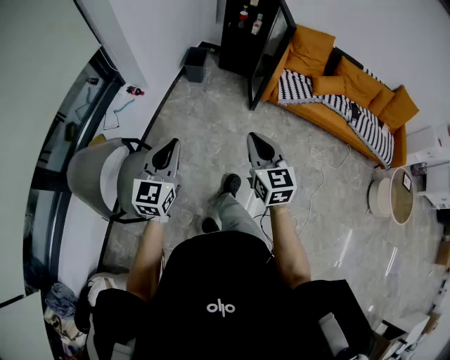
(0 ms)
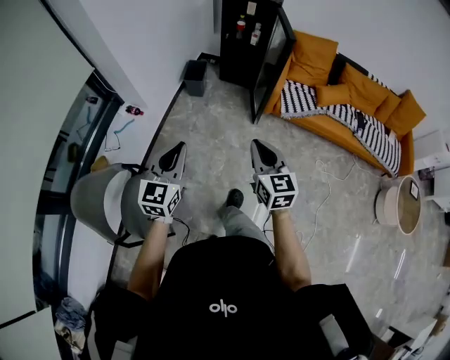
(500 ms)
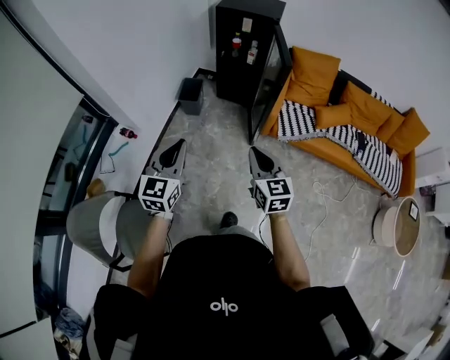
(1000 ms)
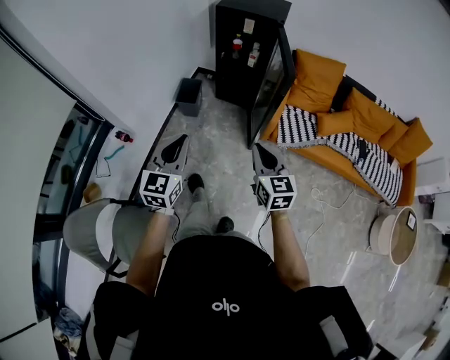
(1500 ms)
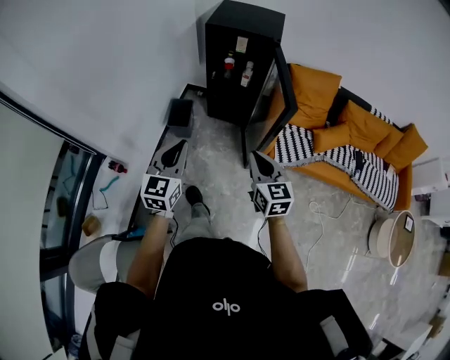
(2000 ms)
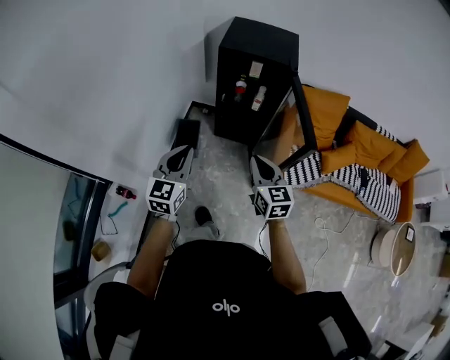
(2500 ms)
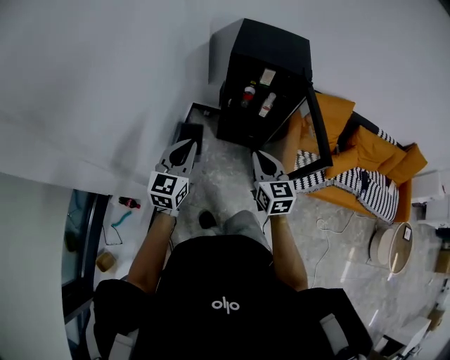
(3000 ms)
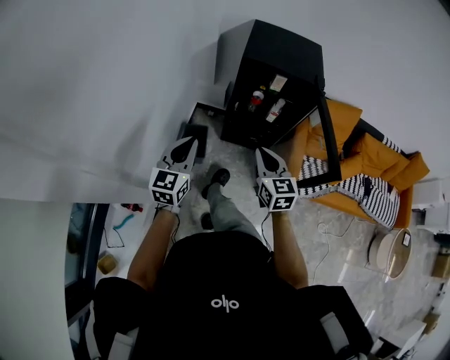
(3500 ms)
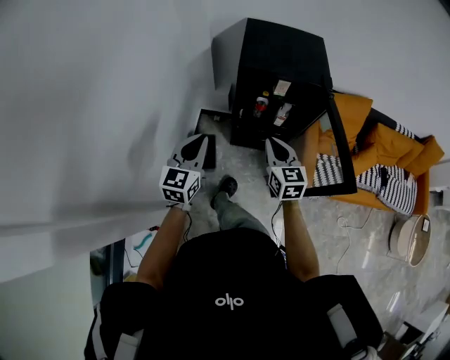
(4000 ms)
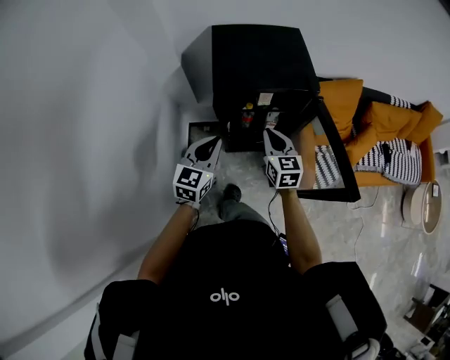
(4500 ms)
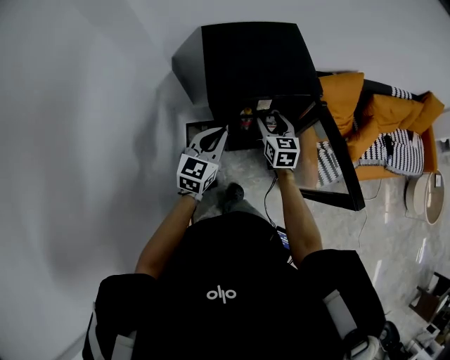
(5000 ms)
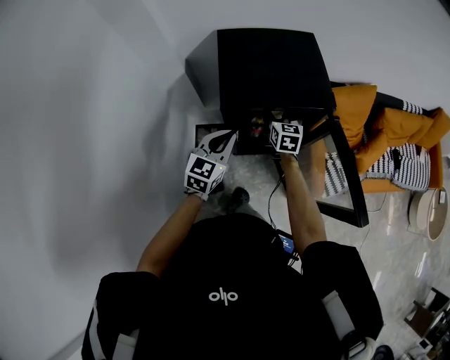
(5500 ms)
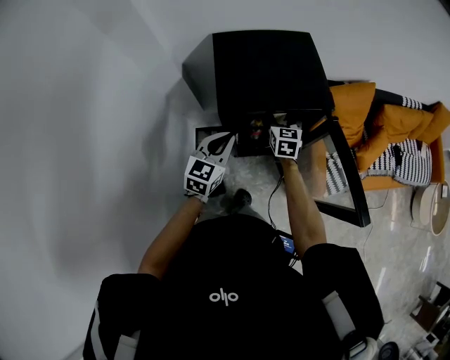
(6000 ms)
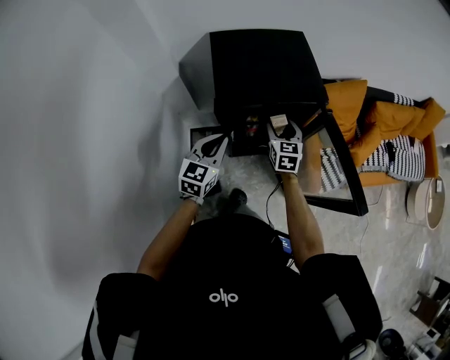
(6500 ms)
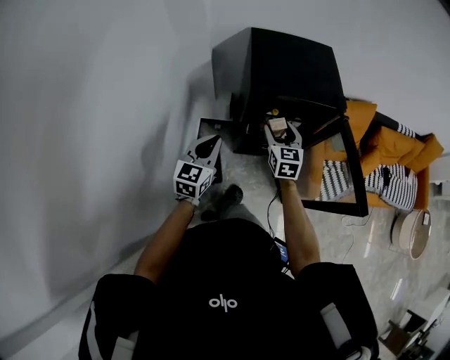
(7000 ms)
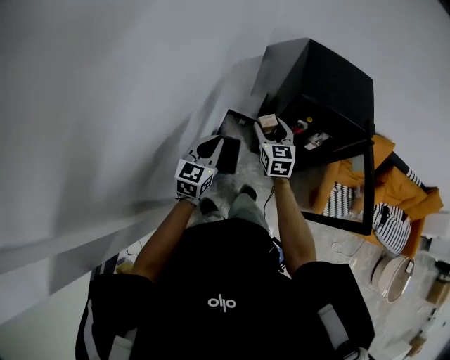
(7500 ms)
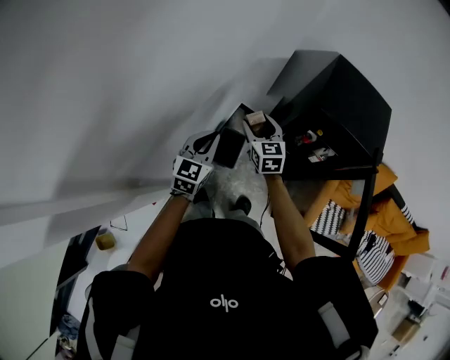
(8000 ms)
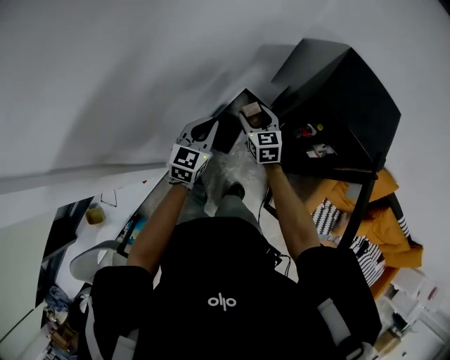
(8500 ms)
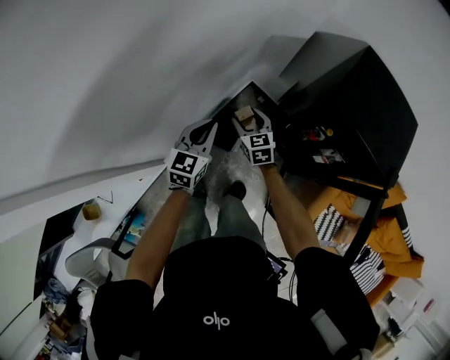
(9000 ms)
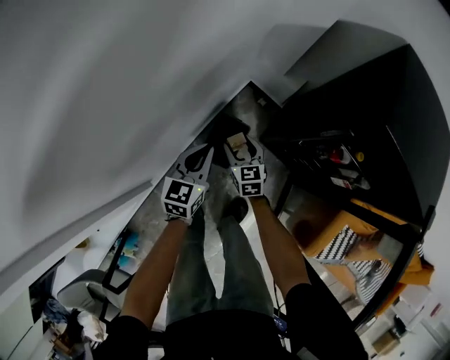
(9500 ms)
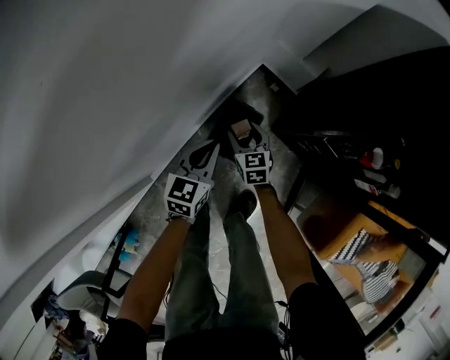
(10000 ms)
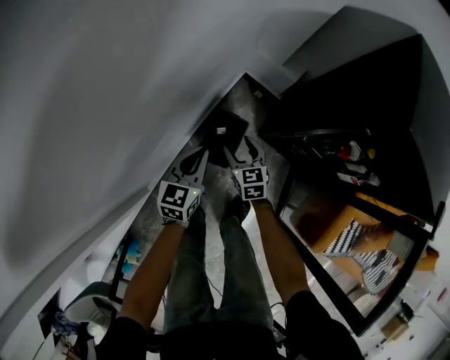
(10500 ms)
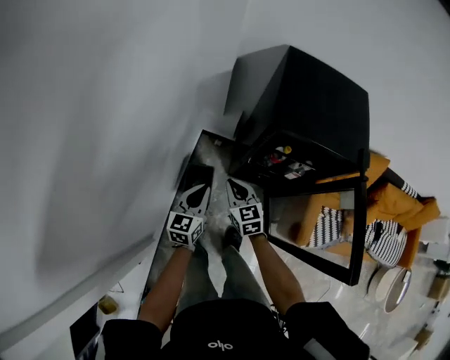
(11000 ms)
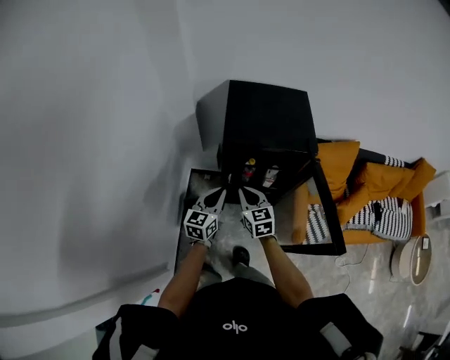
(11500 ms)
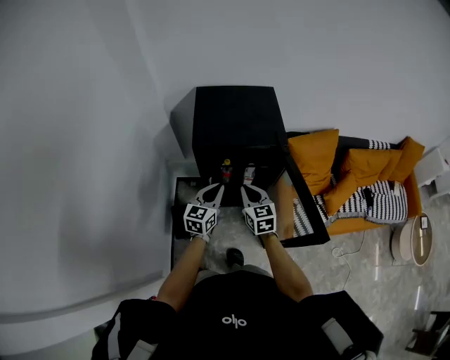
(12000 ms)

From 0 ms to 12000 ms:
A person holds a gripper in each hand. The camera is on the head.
From 0 ms to 2000 ms: The pair of grippers is taken forward, roughly 50 cm.
From 2000 ms to 4000 ms: Both grippers are carried forward and to the left, roughly 40 cm.
From 4000 ms to 6000 ms: The two grippers go approximately 30 cm forward. The left gripper turns by roughly 20 degrees. Meanwhile the right gripper changes its angle by about 20 degrees, and opens its fingers.
From 6000 ms to 8000 ms: The right gripper changes place by some 40 cm, and rotates approximately 50 degrees; the left gripper changes place by roughly 35 cm, and rotates roughly 40 degrees.
From 8000 ms to 10000 ms: Both grippers travel together downward, roughly 40 cm.
From 10000 ms to 12000 ms: Both grippers travel together upward, some 40 cm. The left gripper changes its angle by roughly 40 degrees; the right gripper changes its angle by some 40 degrees, and closes up.

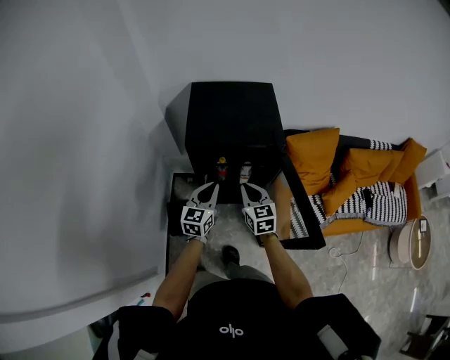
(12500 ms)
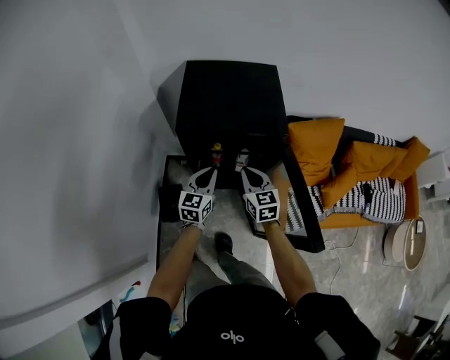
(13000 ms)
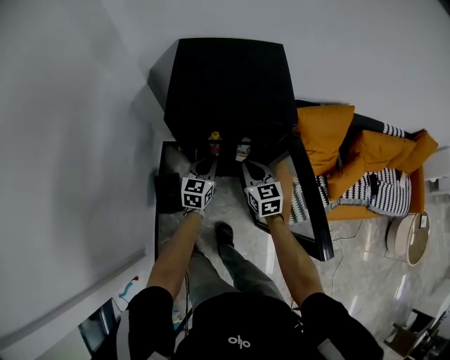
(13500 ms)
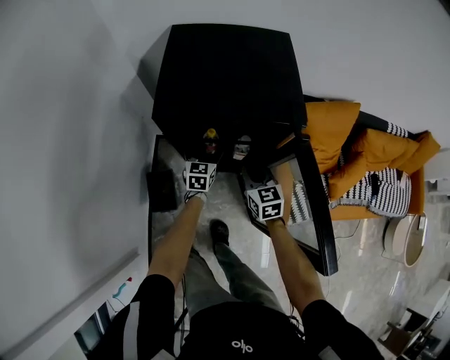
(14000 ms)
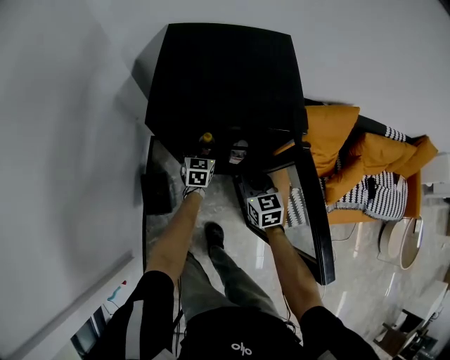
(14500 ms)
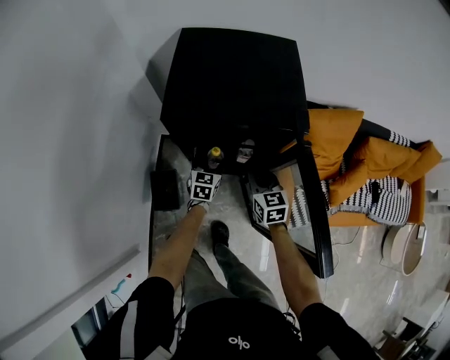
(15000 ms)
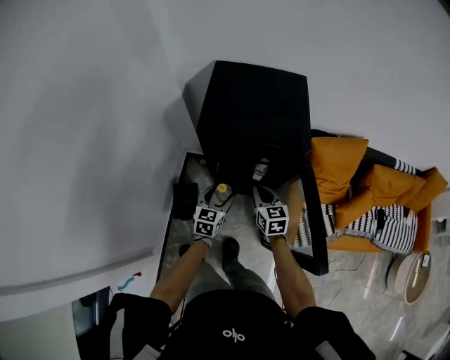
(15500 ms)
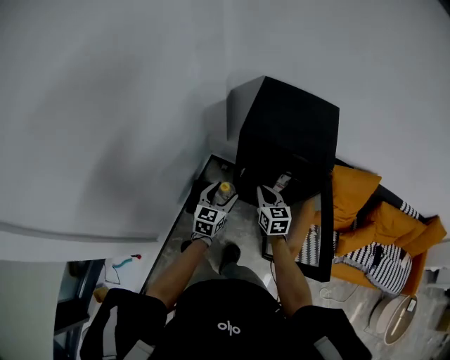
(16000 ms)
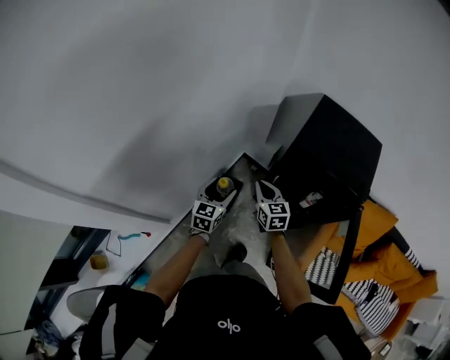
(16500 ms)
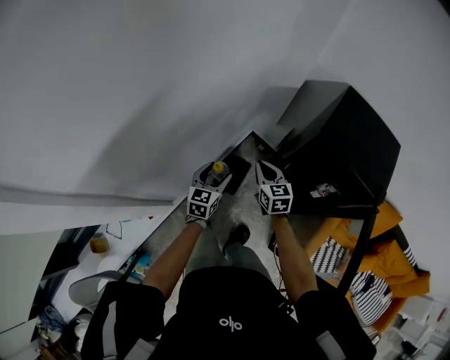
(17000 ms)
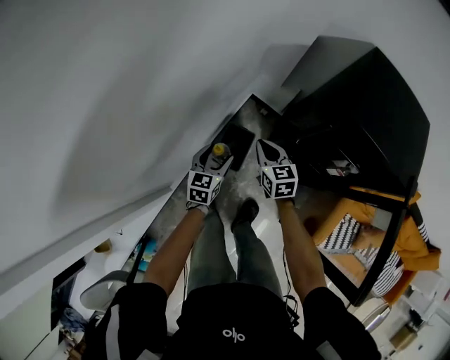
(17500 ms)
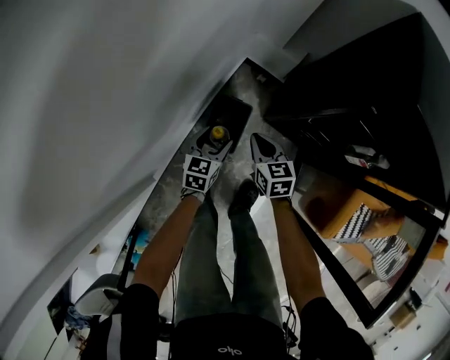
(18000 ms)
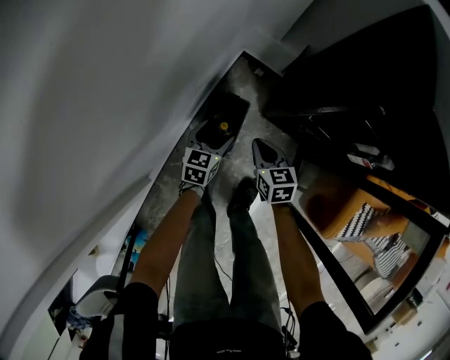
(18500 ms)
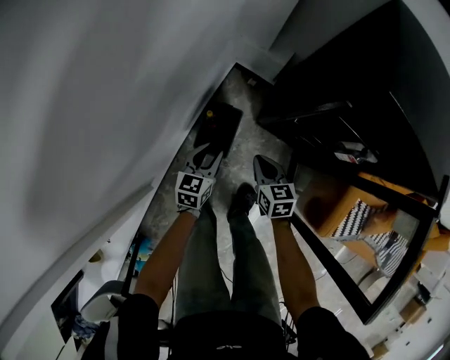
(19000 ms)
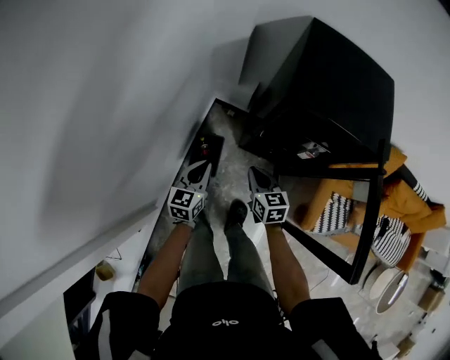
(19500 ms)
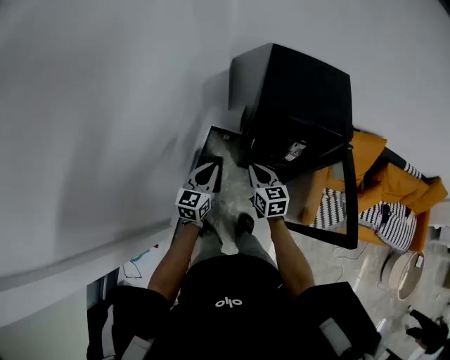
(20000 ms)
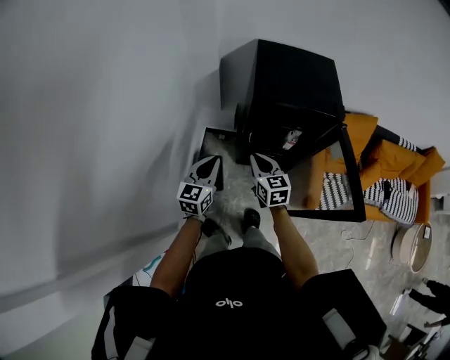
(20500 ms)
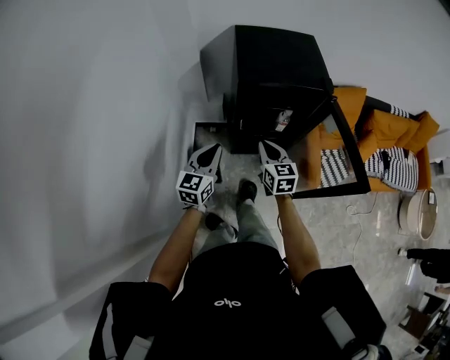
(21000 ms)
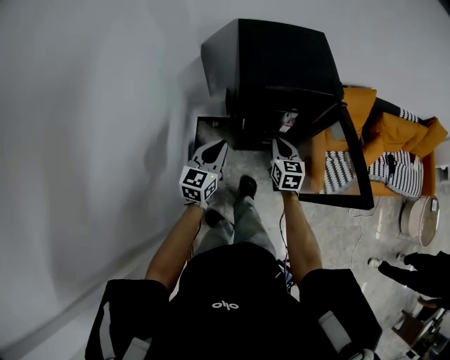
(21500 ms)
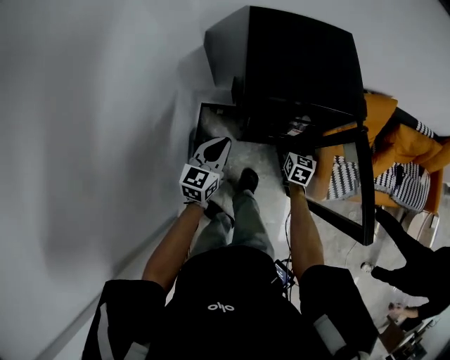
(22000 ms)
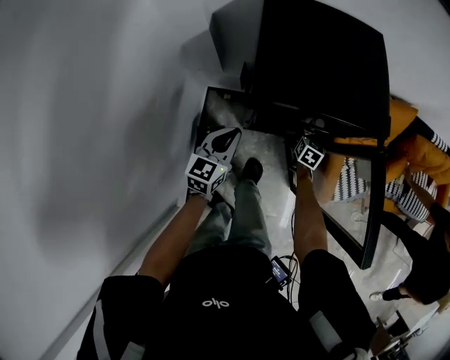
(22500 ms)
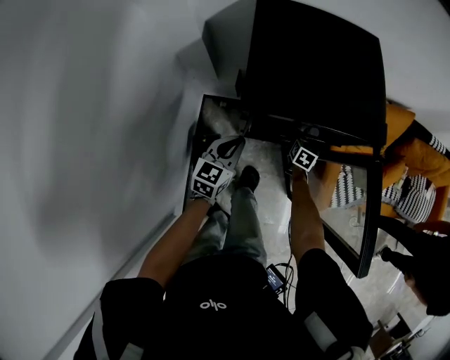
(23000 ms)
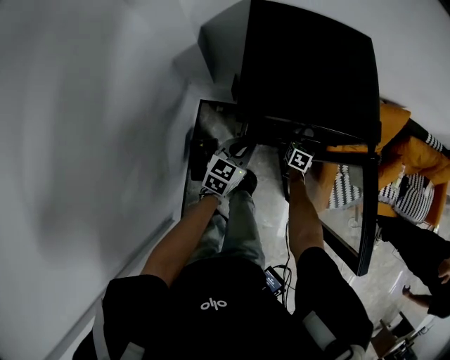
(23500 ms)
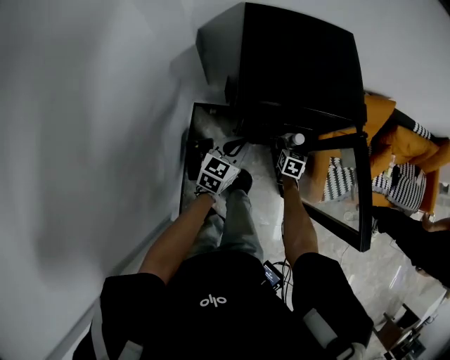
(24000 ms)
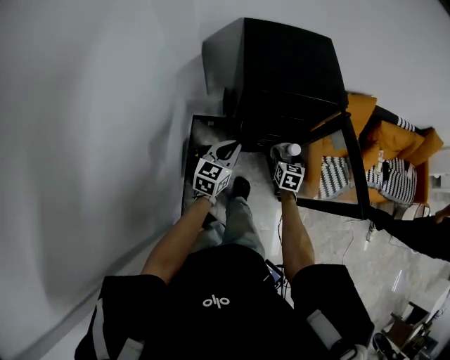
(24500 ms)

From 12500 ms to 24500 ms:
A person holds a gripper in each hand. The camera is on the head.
From 12500 ms to 14500 ms: The left gripper shifts roughly 30 cm downward and forward, and opens; the right gripper shifts approximately 20 cm downward and forward.
From 14500 ms to 16500 ms: The left gripper moves roughly 50 cm, and changes its angle by some 30 degrees. The right gripper changes place by about 35 cm, and changes its angle by approximately 30 degrees.
From 16500 ms to 18500 ms: Both grippers travel together downward, about 40 cm.
From 18500 ms to 20500 ms: Both grippers move upward, about 40 cm. The right gripper swivels about 30 degrees. The left gripper changes its angle by some 30 degrees, and closes up.
From 20500 ms to 22500 ms: The right gripper is displaced downward, forward and to the right by roughly 40 cm, changes its angle by approximately 40 degrees, and opens; the left gripper heads forward and downward, covering approximately 20 cm.
From 22500 ms to 24500 ms: The right gripper shifts roughly 20 cm backward and upward, while the left gripper moves backward and upward, approximately 10 cm.

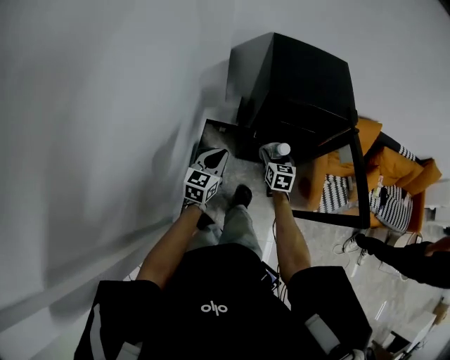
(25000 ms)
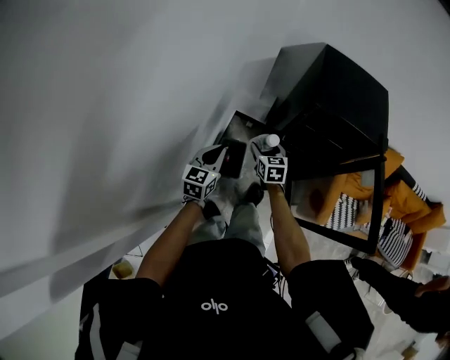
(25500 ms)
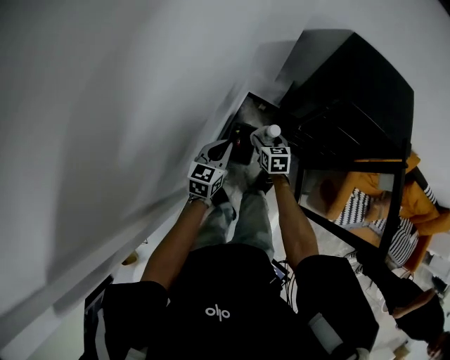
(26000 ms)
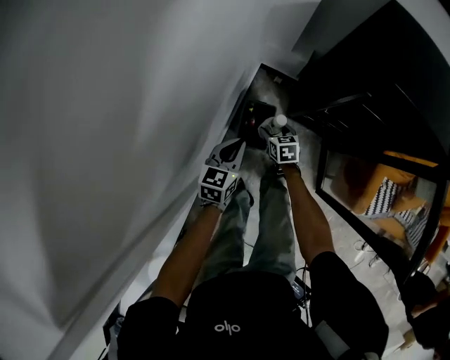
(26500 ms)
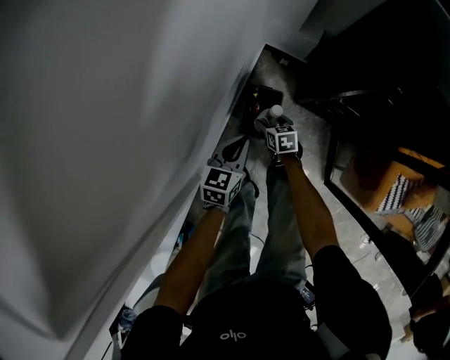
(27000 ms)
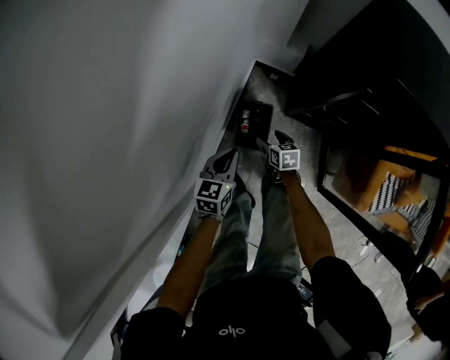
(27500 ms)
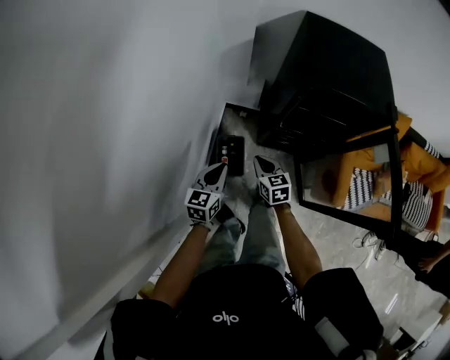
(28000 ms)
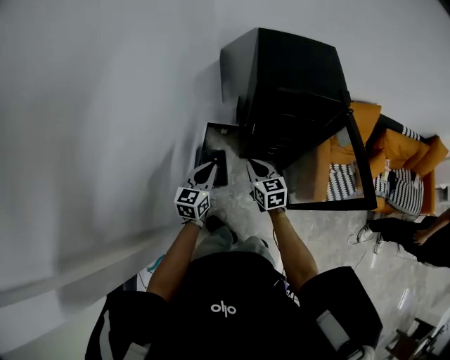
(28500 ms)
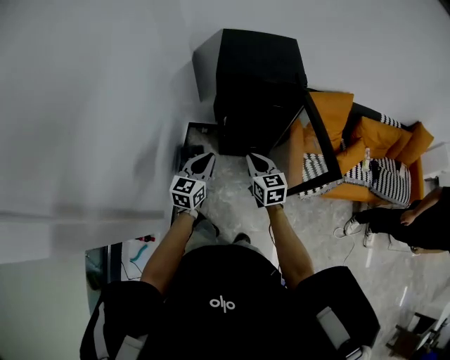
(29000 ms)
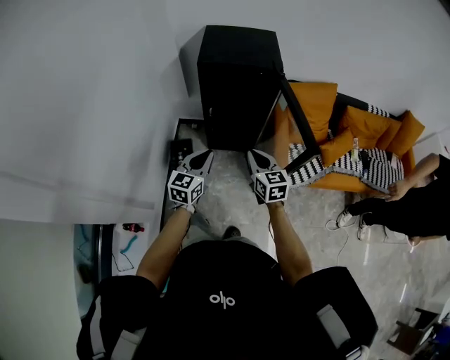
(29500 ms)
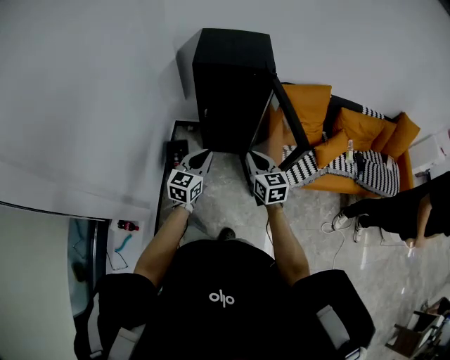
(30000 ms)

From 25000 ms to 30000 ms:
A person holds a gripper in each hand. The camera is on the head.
From 25000 ms to 27500 ms: The two grippers go some 25 cm downward. The right gripper rotates about 40 degrees; the left gripper turns by approximately 20 degrees.
From 27500 ms to 30000 ms: The left gripper is displaced to the right, upward and backward by some 50 cm, and rotates approximately 30 degrees; the right gripper is displaced upward, to the right and backward by about 70 cm, tips its fingers upward by some 30 degrees, and closes.
